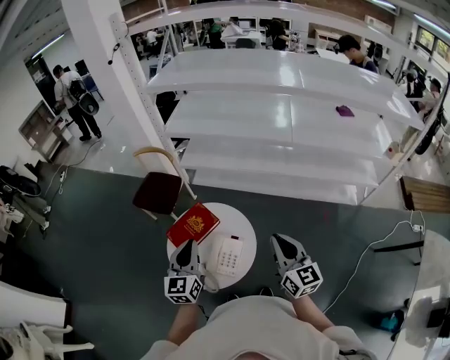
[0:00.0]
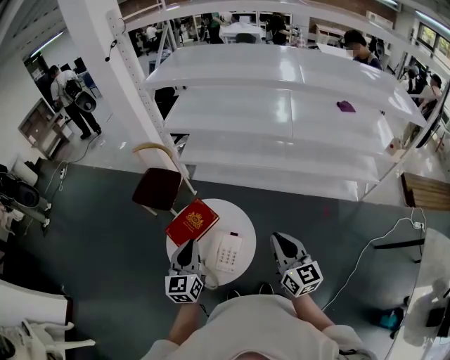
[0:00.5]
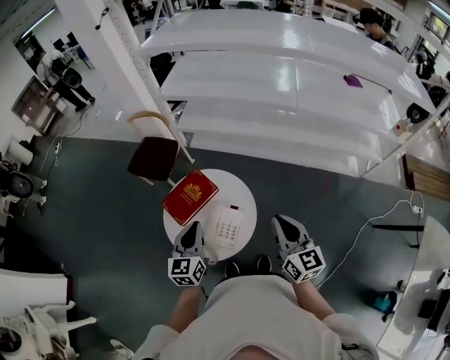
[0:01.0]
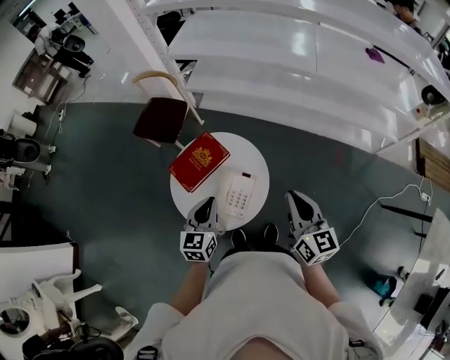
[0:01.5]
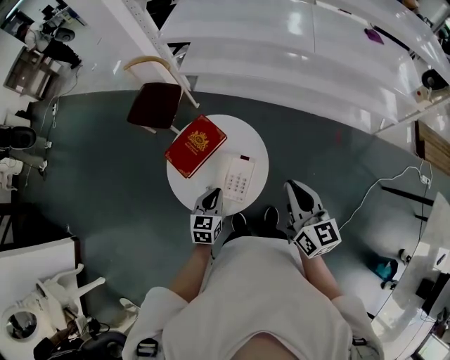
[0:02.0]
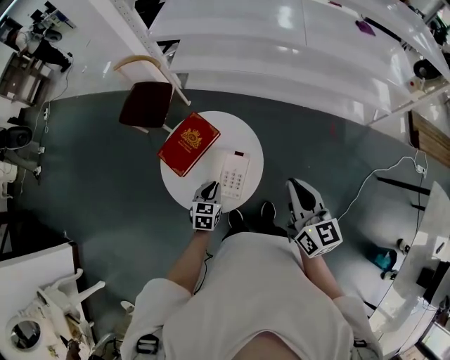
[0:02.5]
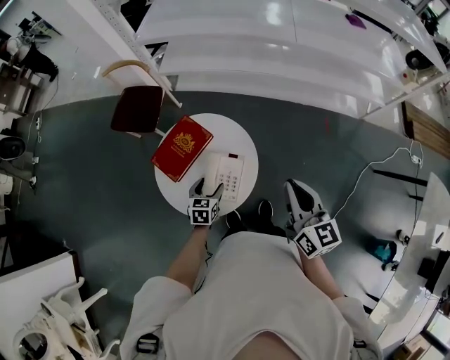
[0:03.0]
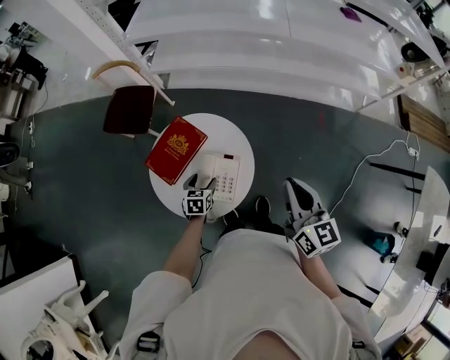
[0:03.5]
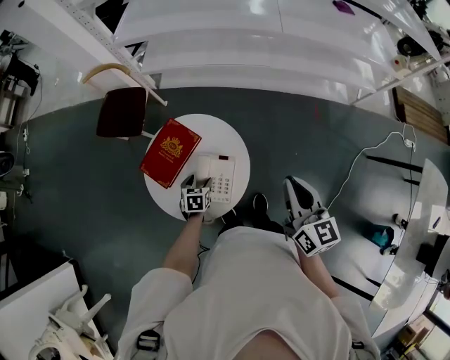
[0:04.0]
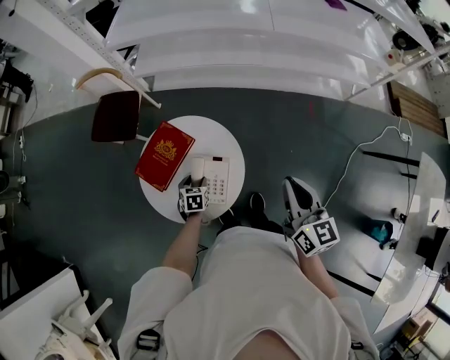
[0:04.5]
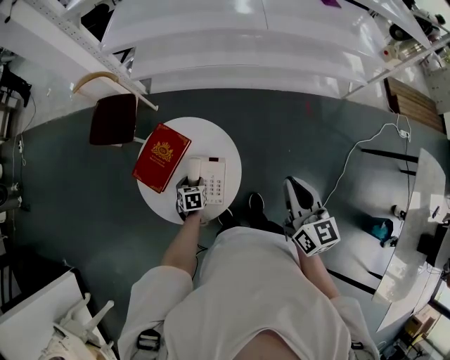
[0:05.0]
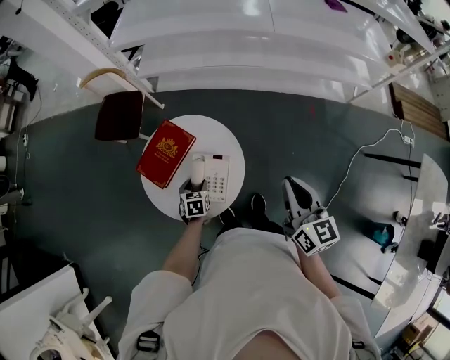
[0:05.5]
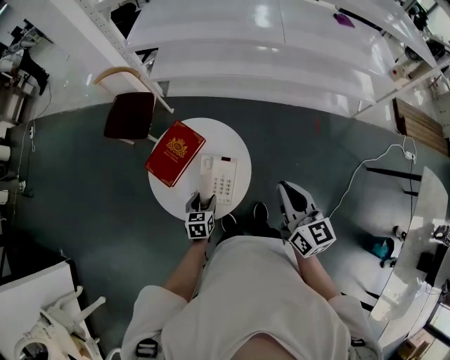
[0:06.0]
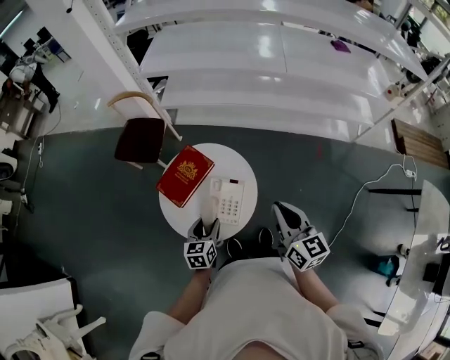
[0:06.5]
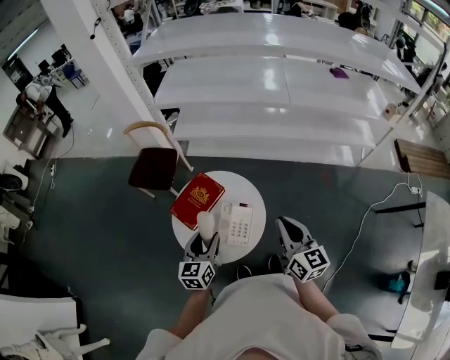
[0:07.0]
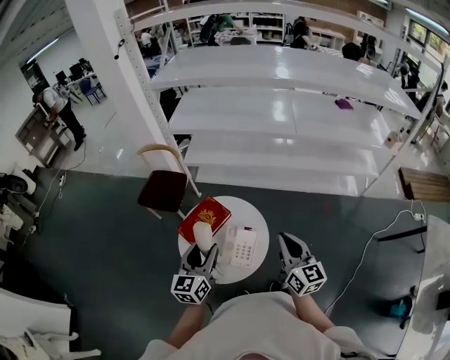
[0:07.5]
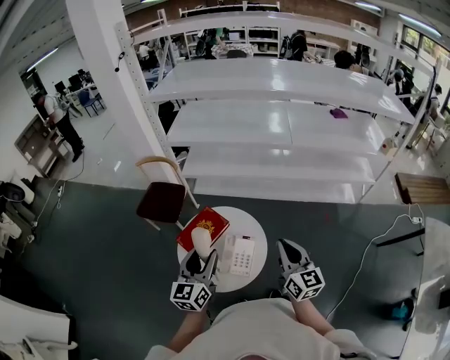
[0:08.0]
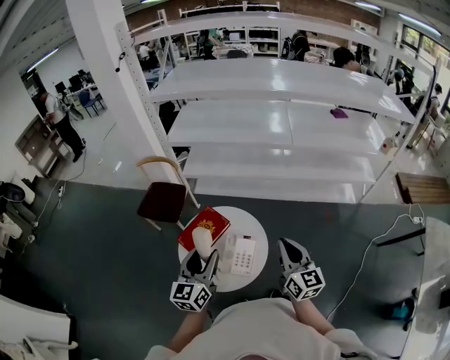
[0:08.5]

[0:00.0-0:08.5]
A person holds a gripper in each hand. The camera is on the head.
0:00.0 to 0:02.0: The right gripper shifts approximately 5 cm downward, while the left gripper travels downward by roughly 20 cm, and rotates approximately 30 degrees.
0:02.0 to 0:04.0: The left gripper goes about 15 cm downward and forward, rotates roughly 20 degrees, and opens.
0:04.0 to 0:06.5: The right gripper is displaced to the left by roughly 5 cm, while the left gripper heads upward and backward, covering approximately 15 cm, and changes its angle by approximately 30 degrees.
0:06.5 to 0:08.5: The left gripper moves upward, approximately 25 cm, and tips its fingers upward by roughly 30 degrees.

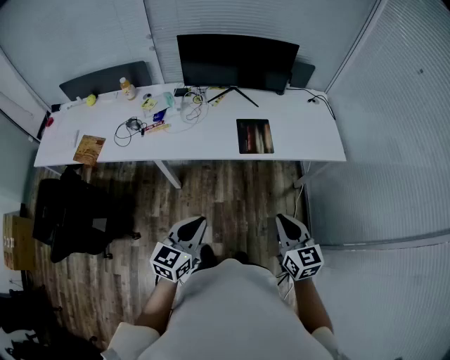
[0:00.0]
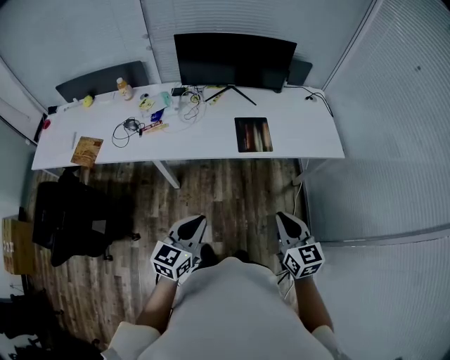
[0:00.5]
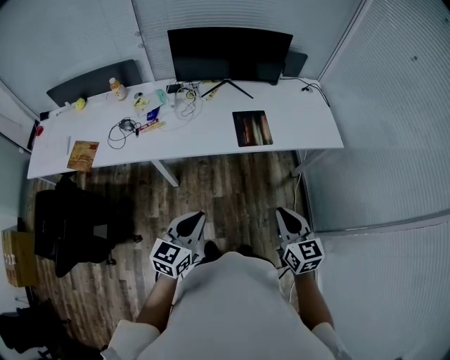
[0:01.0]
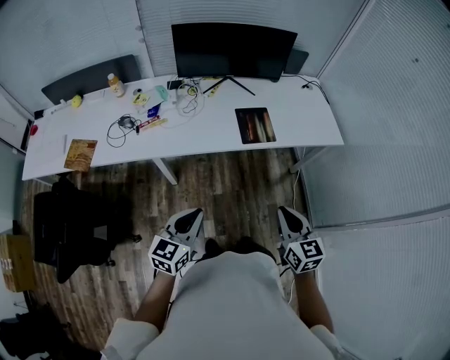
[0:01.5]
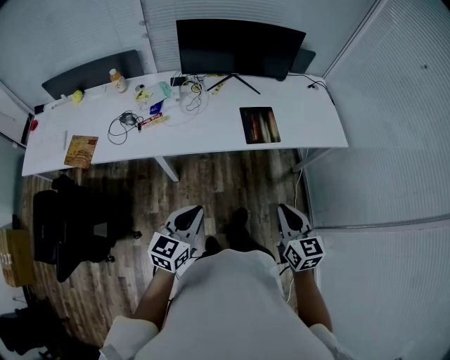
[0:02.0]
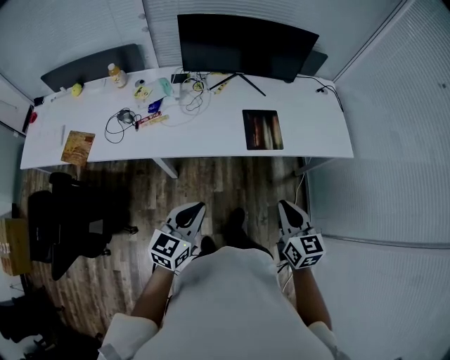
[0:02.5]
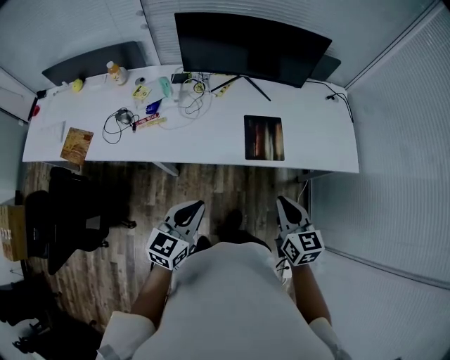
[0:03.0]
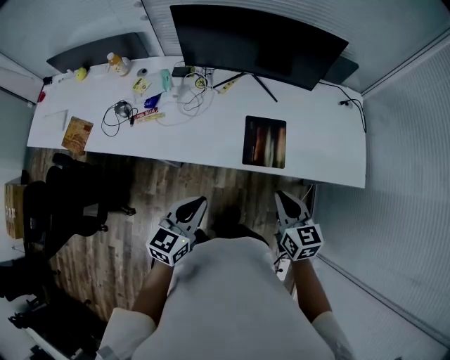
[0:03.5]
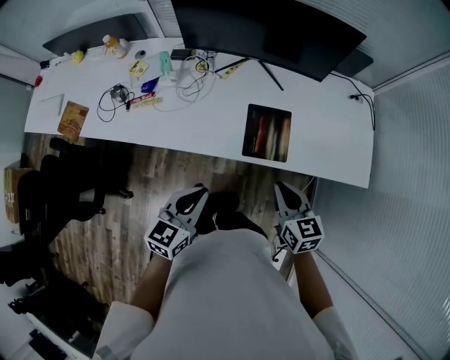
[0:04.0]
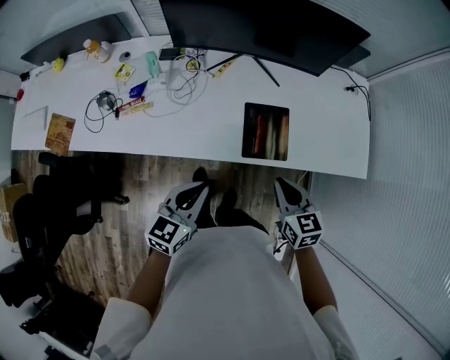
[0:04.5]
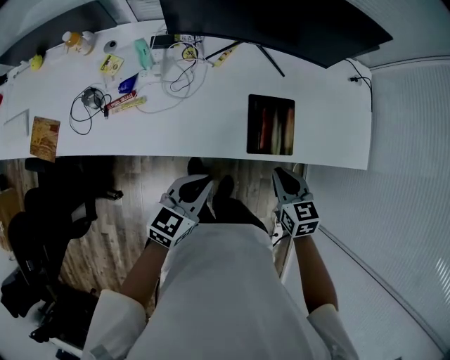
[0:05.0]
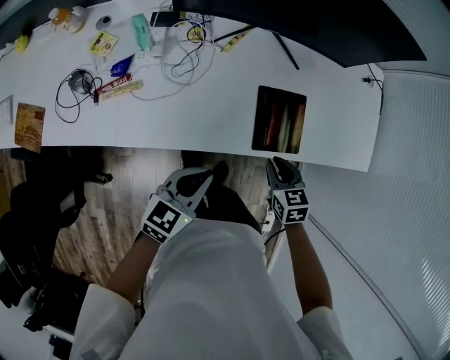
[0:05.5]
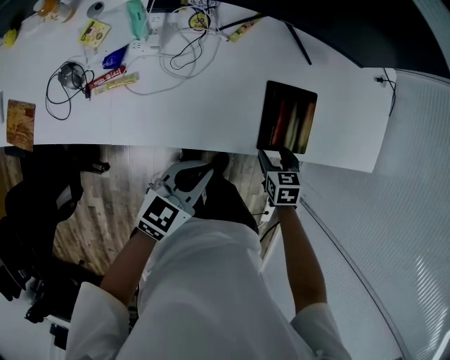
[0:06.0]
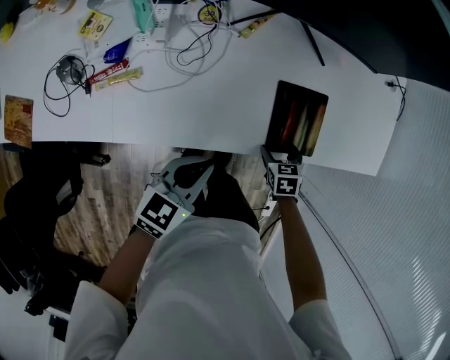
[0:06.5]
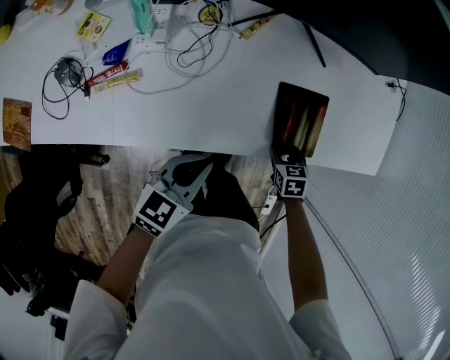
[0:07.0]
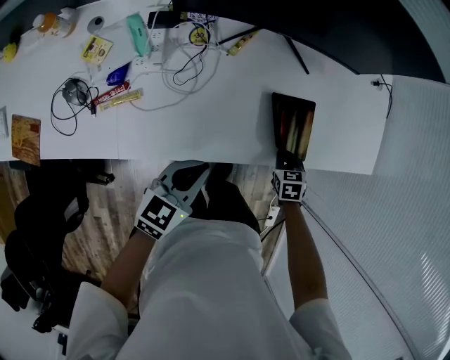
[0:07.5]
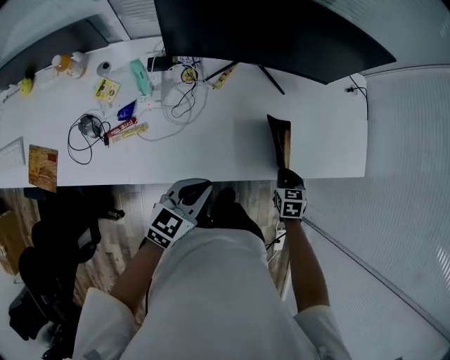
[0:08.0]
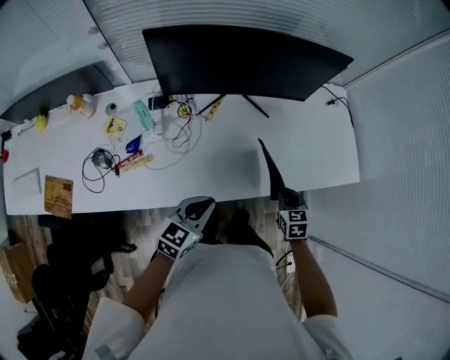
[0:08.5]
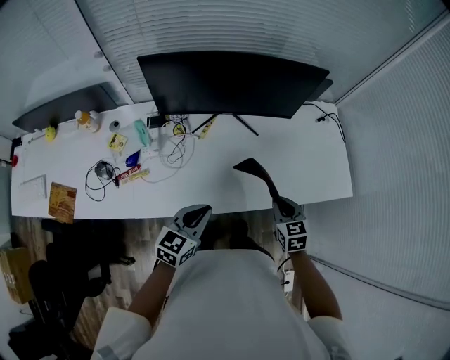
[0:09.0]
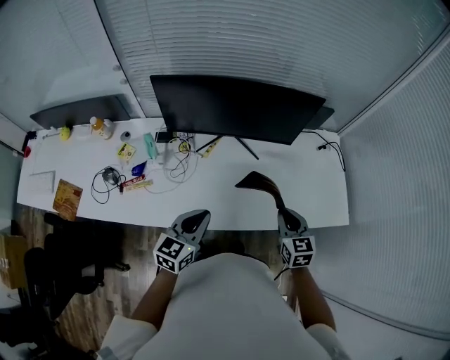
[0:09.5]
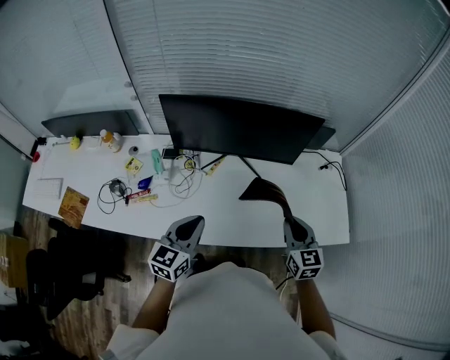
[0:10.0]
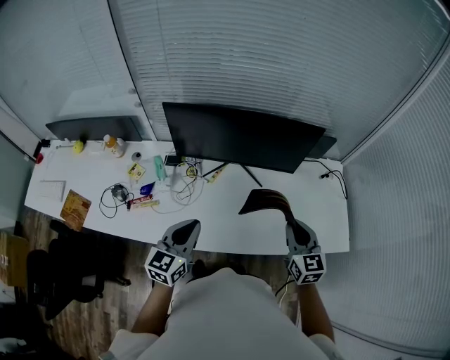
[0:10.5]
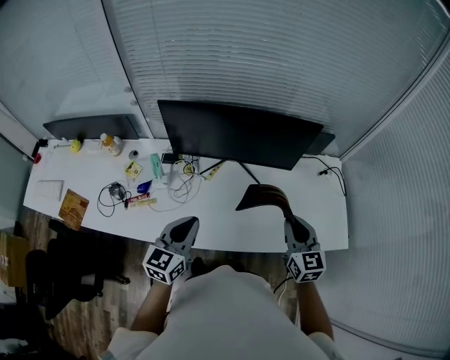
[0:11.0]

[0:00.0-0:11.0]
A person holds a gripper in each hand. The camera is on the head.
0:00.0 to 0:02.0: Both grippers travel together to the left, approximately 10 cm.
0:02.0 to 0:03.5: The right gripper goes some 25 cm forward. The left gripper moves forward and to the right, roughly 20 cm.
0:03.5 to 0:05.5: The right gripper goes approximately 20 cm downward, forward and to the left, and swivels approximately 30 degrees. The left gripper heads forward, downward and to the left, covering approximately 15 cm, and rotates about 20 degrees.
0:05.5 to 0:07.5: The right gripper travels downward by some 10 cm, and opens and closes again, while the left gripper goes roughly 5 cm to the left.
0:07.5 to 0:09.0: The left gripper is displaced upward and to the right by some 15 cm. The right gripper travels upward by some 20 cm, and swivels some 30 degrees.
0:09.0 to 0:11.0: The left gripper is displaced upward by roughly 10 cm, and turns by some 20 degrees, while the right gripper heads upward and forward, covering approximately 15 cm, and swivels roughly 20 degrees.

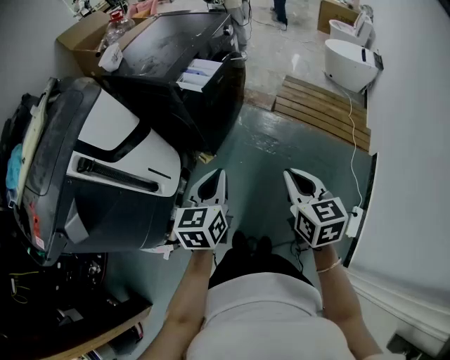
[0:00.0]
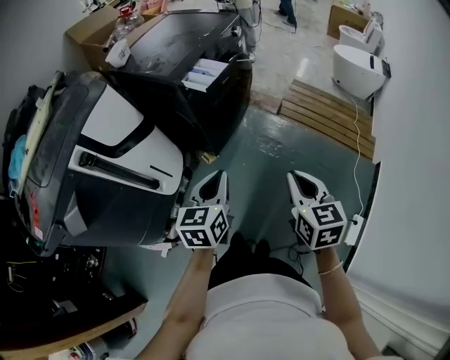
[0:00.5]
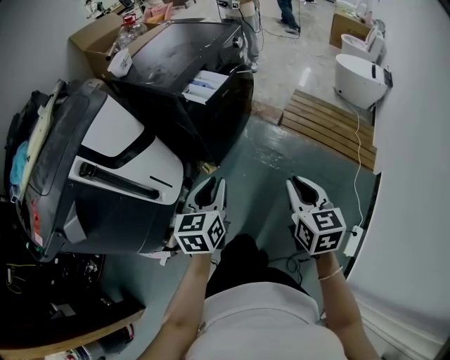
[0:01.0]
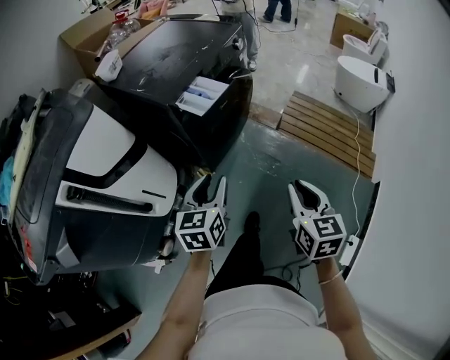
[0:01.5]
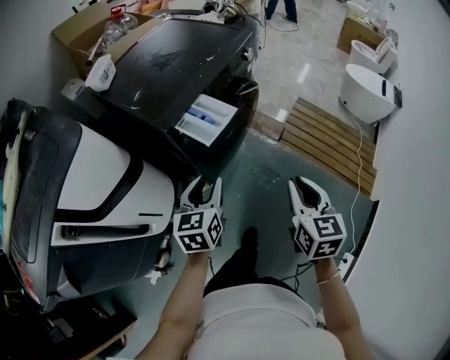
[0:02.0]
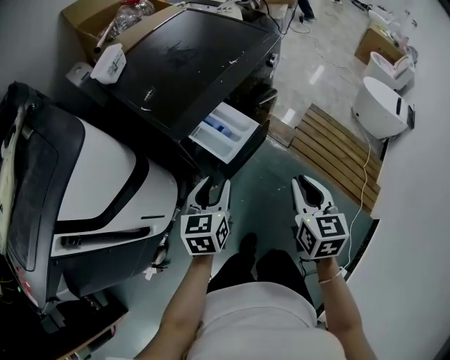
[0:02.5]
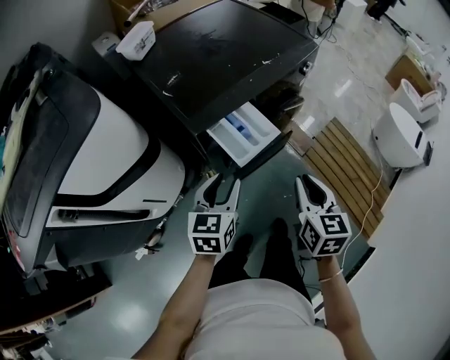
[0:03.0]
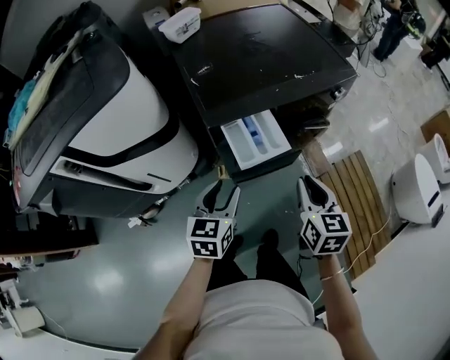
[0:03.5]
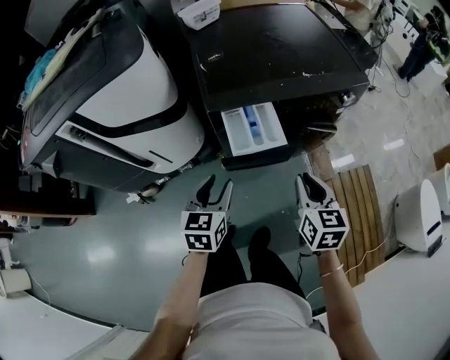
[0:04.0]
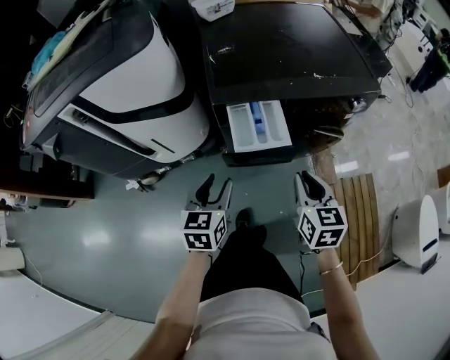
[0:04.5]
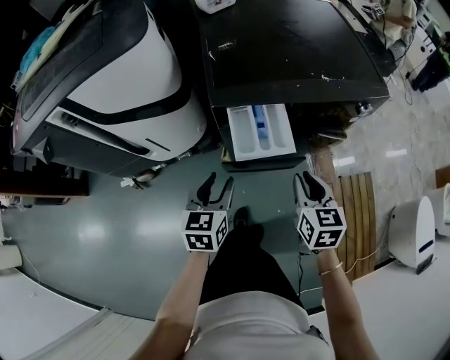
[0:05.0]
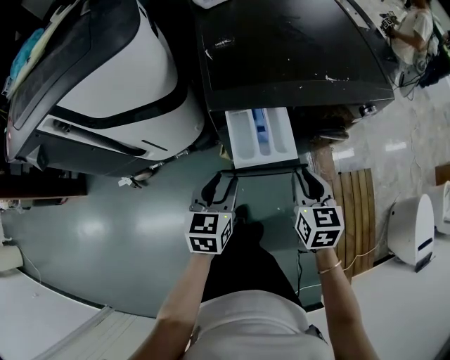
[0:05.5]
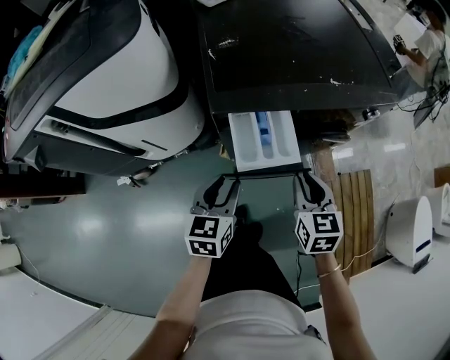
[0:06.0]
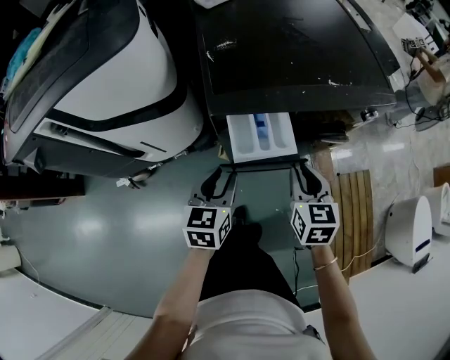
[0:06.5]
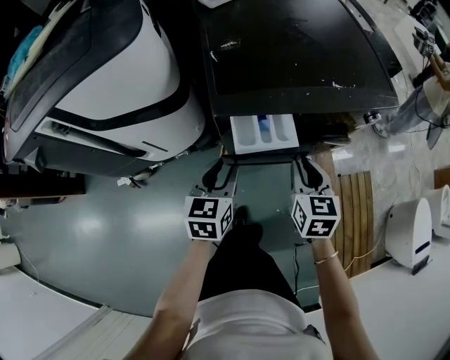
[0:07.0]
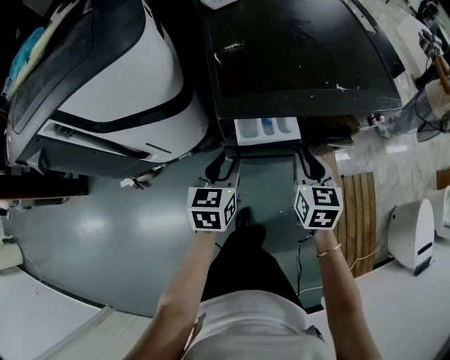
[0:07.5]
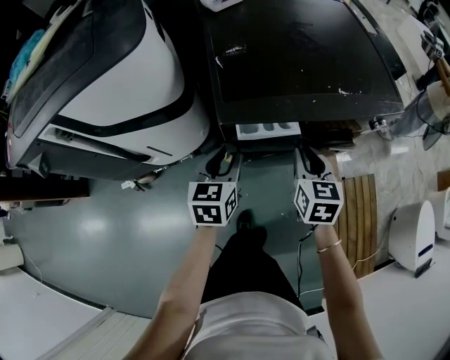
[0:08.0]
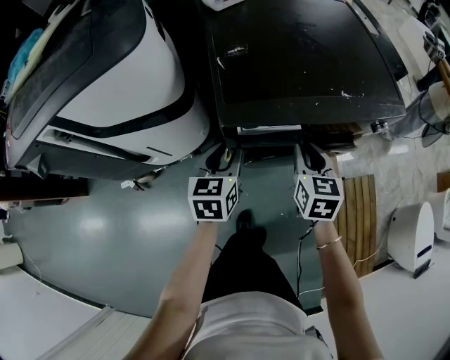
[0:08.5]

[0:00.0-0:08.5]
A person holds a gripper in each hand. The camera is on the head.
0:00.0 to 0:02.0: The two grippers go about 25 cm forward. The left gripper opens.
0:02.0 to 0:04.0: The left gripper shifts by some 5 cm, and turns by about 40 degrees. The right gripper moves roughly 20 cm, and swivels approximately 40 degrees.
0:04.0 to 0:06.5: The two grippers go approximately 10 cm forward.
0:06.5 to 0:08.5: Both grippers move forward, approximately 10 cm.
